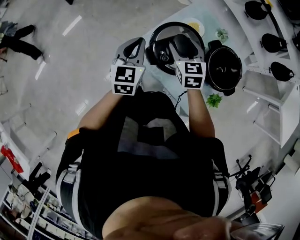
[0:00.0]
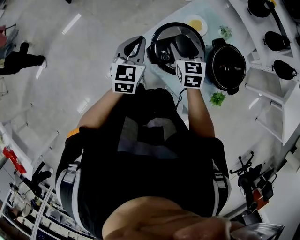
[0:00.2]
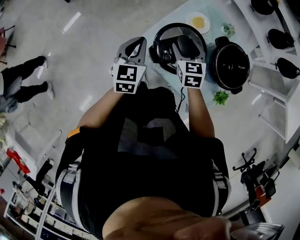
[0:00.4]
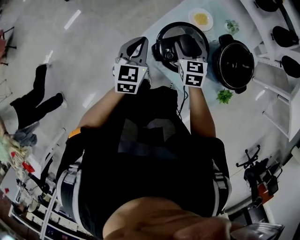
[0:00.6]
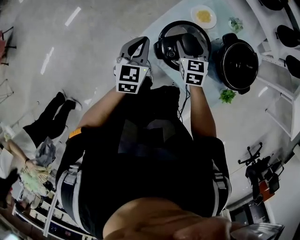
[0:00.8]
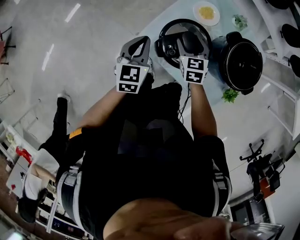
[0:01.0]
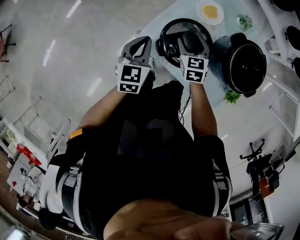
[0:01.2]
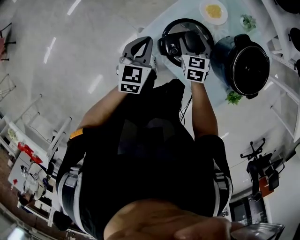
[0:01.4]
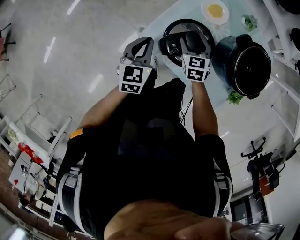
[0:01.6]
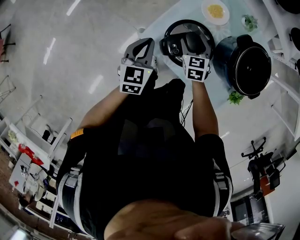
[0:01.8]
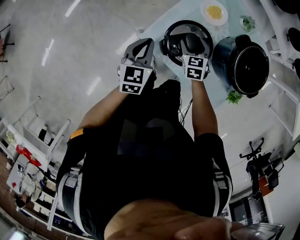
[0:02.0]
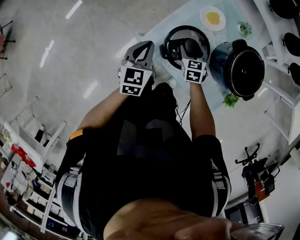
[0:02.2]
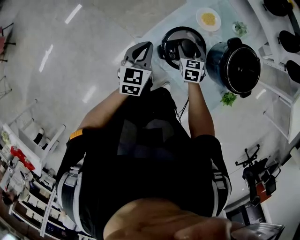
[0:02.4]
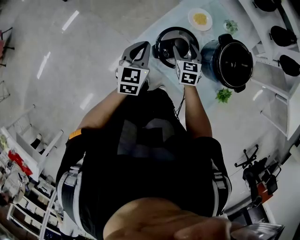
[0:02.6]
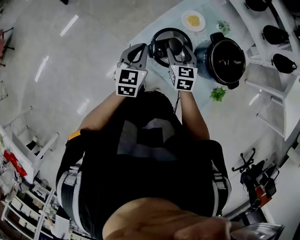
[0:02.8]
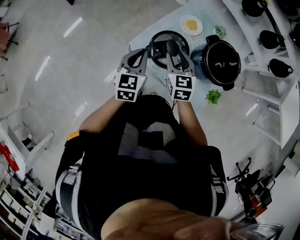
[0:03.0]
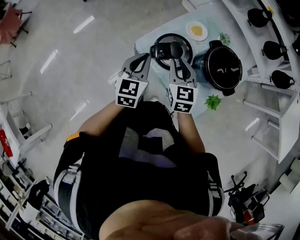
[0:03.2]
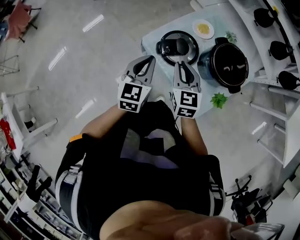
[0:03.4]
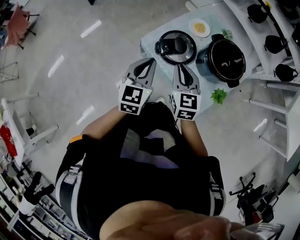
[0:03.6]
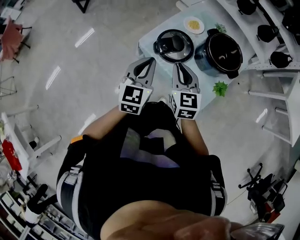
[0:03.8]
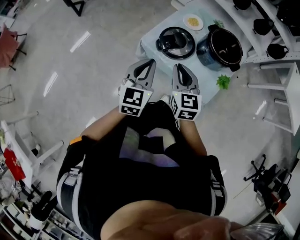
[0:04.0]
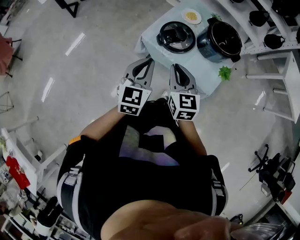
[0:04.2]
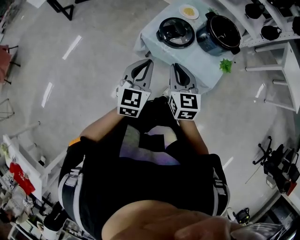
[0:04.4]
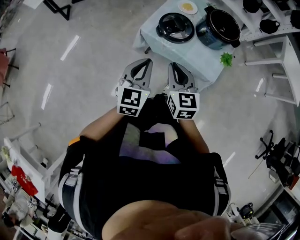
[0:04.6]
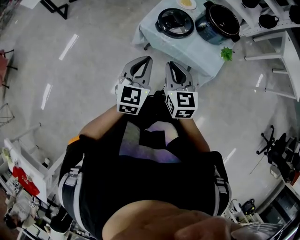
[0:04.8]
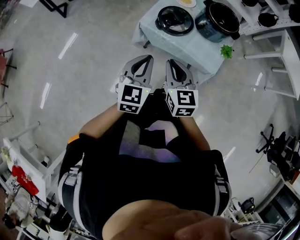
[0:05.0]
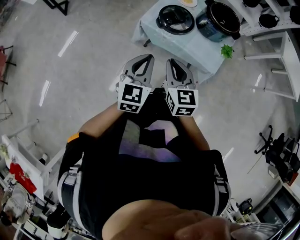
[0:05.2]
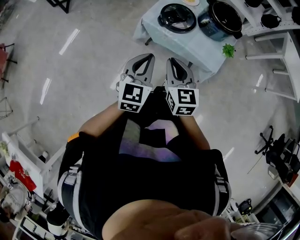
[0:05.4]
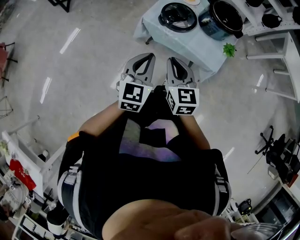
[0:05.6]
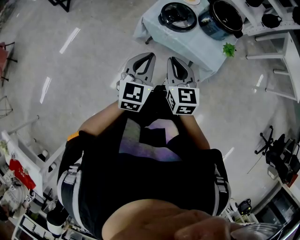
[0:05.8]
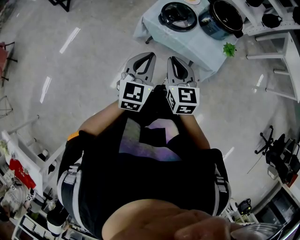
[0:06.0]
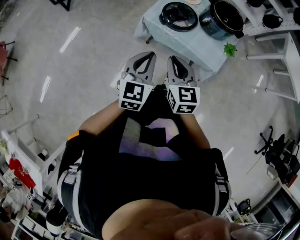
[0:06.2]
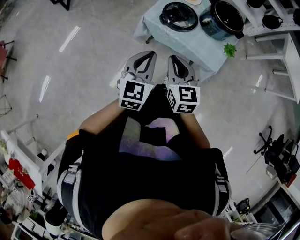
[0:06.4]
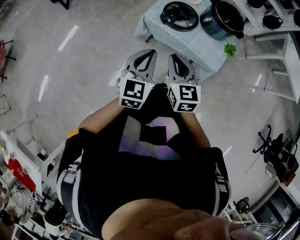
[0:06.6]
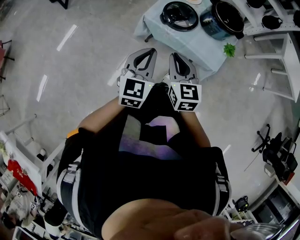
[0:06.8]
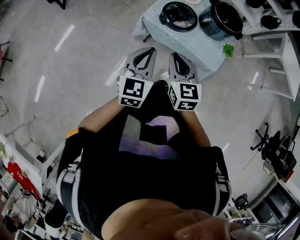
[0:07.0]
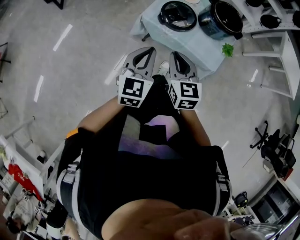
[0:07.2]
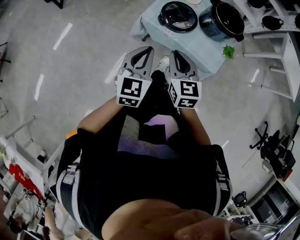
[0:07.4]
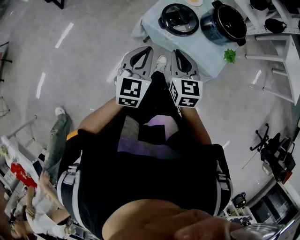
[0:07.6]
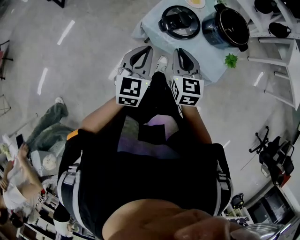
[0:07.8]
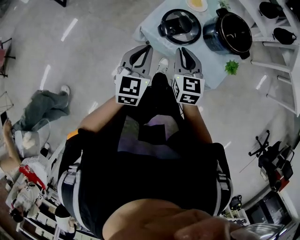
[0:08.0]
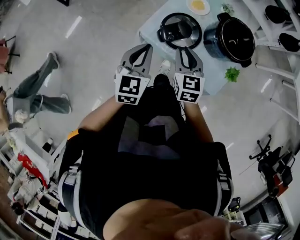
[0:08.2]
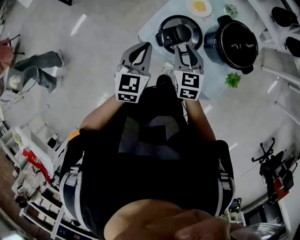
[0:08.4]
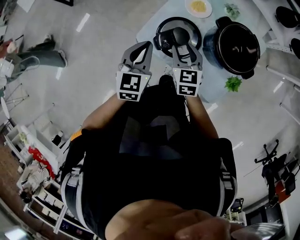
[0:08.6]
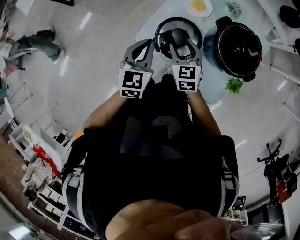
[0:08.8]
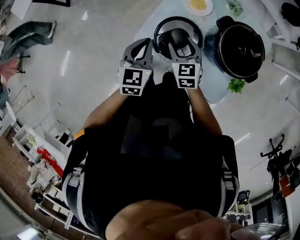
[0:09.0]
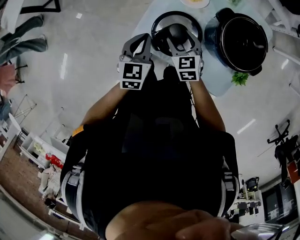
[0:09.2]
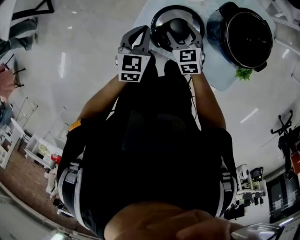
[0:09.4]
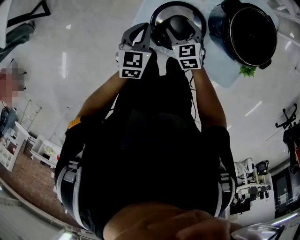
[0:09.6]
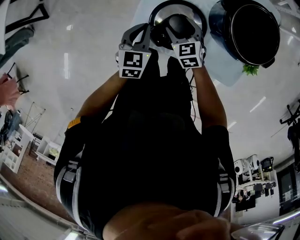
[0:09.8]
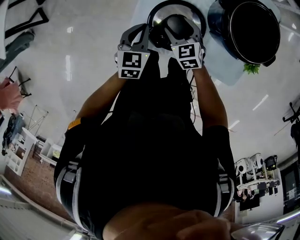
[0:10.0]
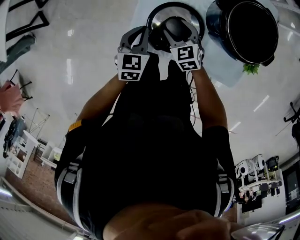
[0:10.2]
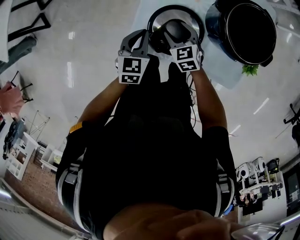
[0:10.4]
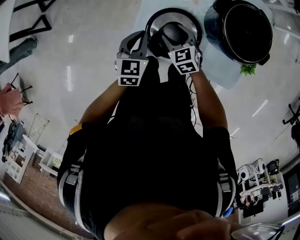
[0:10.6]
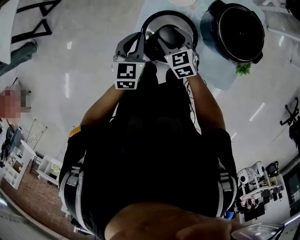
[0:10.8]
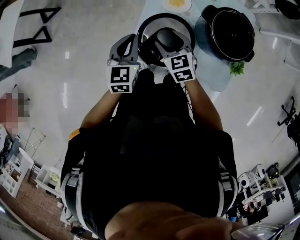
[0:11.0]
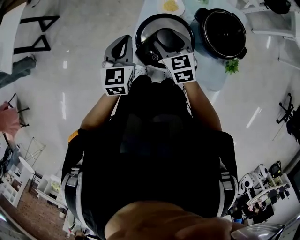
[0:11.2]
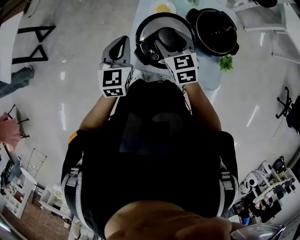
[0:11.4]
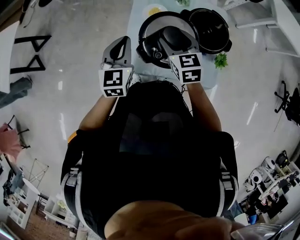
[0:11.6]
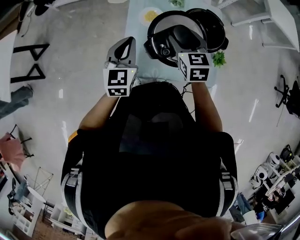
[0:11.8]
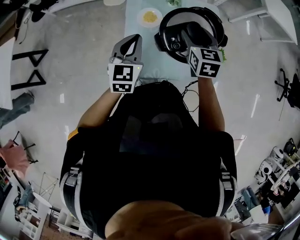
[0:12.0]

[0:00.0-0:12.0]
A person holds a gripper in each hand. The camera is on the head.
0:00.0 to 0:01.6: The two grippers go roughly 20 cm downward.
0:01.6 to 0:03.0: Both grippers travel together upward and backward, about 20 cm. The right gripper closes up.
0:03.0 to 0:04.4: The two grippers go approximately 25 cm backward. The right gripper closes its fingers.
0:04.4 to 0:06.0: Both grippers travel together backward, approximately 5 cm.
0:06.0 to 0:07.6: The two grippers go approximately 10 cm forward.
0:07.6 to 0:09.0: The left gripper moves forward, approximately 30 cm; the right gripper travels forward and downward by roughly 30 cm, and opens.
0:09.0 to 0:10.4: The left gripper is displaced downward and forward by some 15 cm. Meanwhile the right gripper heads downward, covering roughly 10 cm.
0:10.4 to 0:12.0: Both grippers travel together upward, roughly 25 cm. The left gripper changes its angle by about 30 degrees, while the right gripper rotates about 40 degrees.

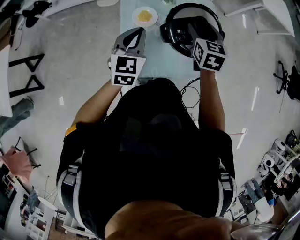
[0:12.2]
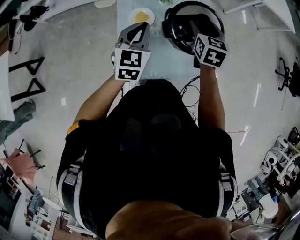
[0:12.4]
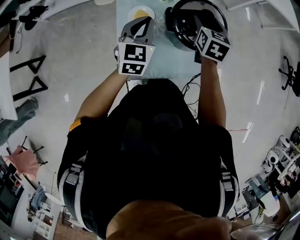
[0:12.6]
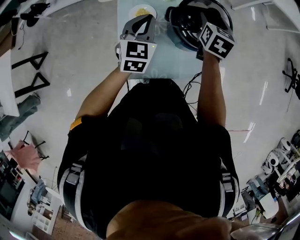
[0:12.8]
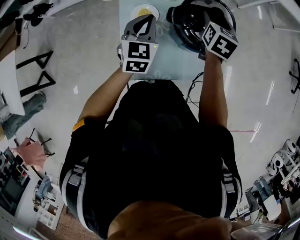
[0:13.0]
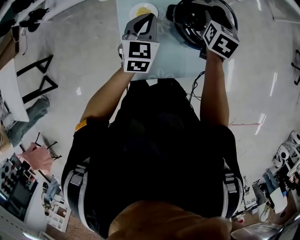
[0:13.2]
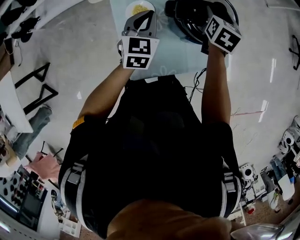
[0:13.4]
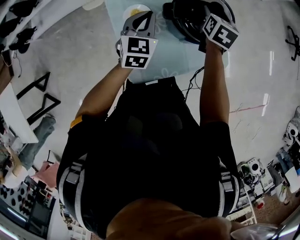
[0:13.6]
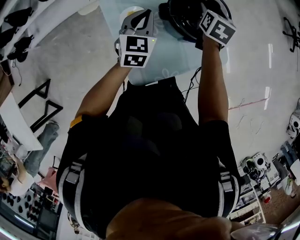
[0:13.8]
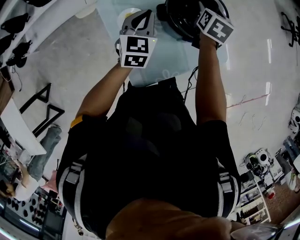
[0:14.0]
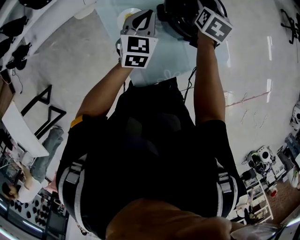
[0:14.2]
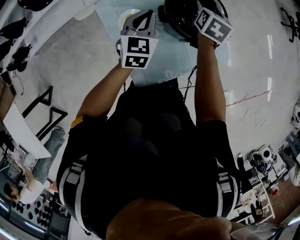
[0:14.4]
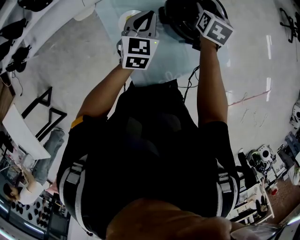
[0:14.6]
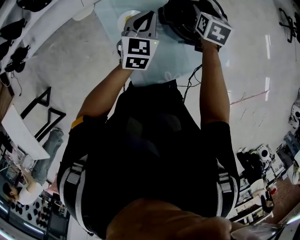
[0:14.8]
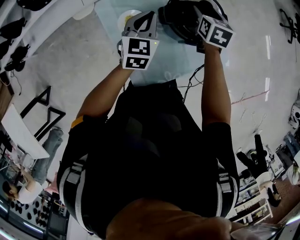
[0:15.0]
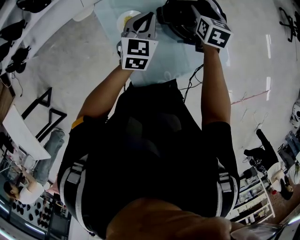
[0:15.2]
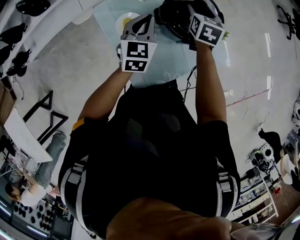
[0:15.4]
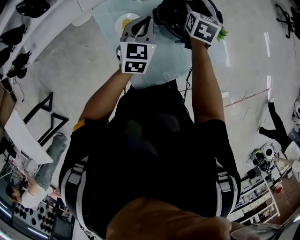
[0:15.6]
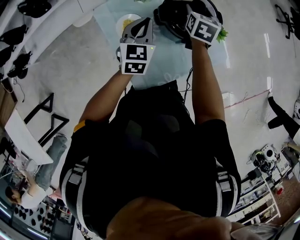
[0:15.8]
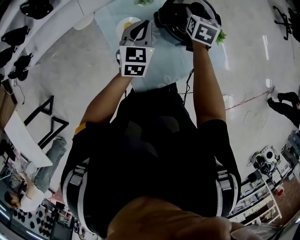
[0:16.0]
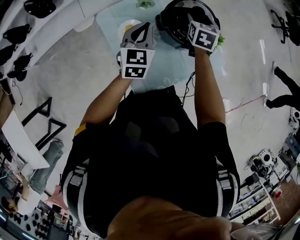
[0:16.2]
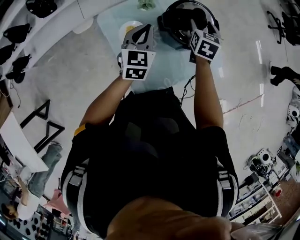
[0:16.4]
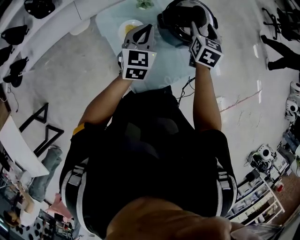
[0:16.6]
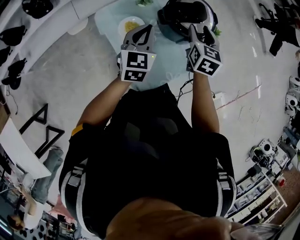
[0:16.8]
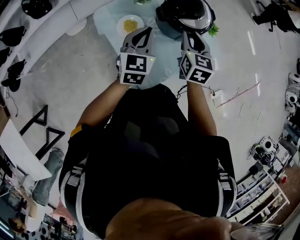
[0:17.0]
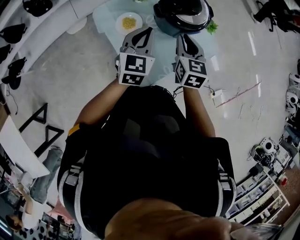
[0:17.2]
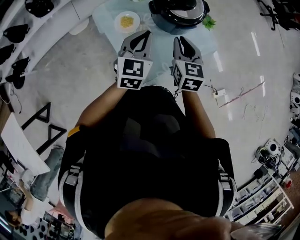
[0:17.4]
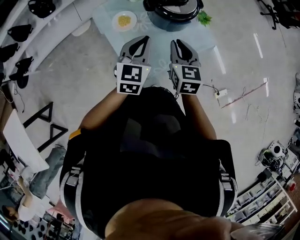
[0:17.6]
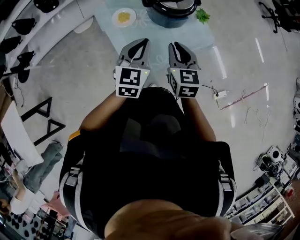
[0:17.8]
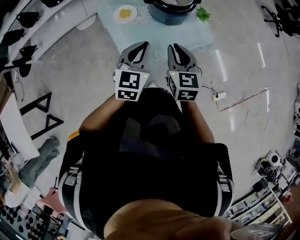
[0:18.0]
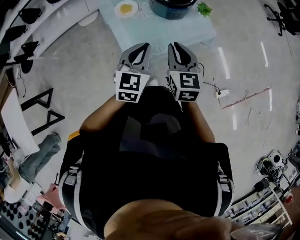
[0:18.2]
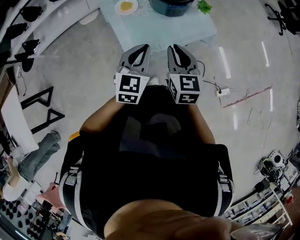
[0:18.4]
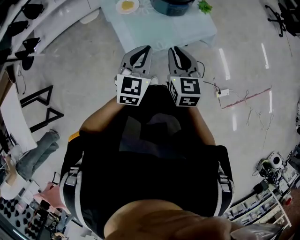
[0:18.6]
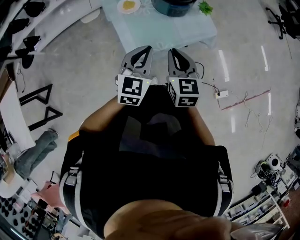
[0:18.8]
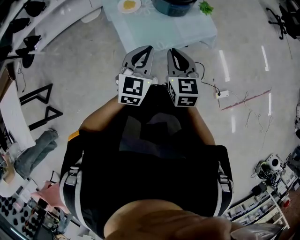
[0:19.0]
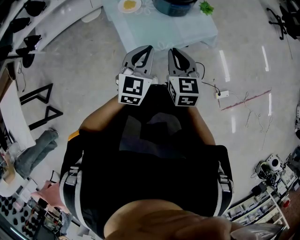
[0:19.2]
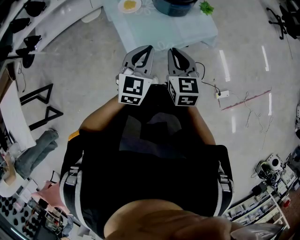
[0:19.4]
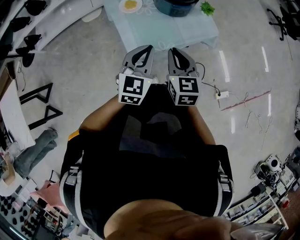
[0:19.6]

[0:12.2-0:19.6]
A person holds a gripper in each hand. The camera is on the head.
0:12.2 to 0:13.6: The left gripper is displaced forward and downward by some 15 cm; the right gripper moves forward, to the right and downward, about 15 cm, and changes its angle by approximately 30 degrees.
0:13.6 to 0:15.2: The grippers stay close to where they were, moving slightly.
0:15.2 to 0:16.6: The right gripper is displaced backward and upward by some 10 cm, while the left gripper is displaced backward by about 5 cm.
0:16.6 to 0:18.2: The left gripper travels backward and to the right by about 30 cm, while the right gripper heads backward, covering about 35 cm, rotates about 20 degrees, and closes up.
0:18.2 to 0:19.6: The right gripper shifts by some 5 cm.

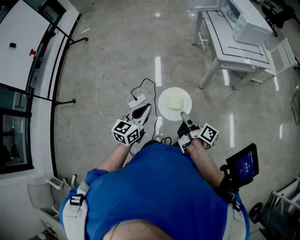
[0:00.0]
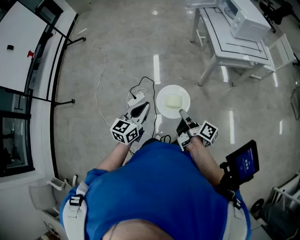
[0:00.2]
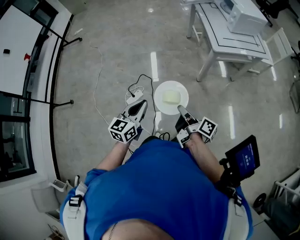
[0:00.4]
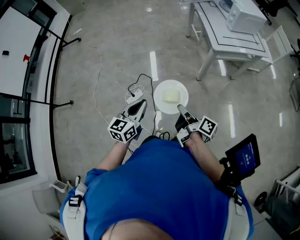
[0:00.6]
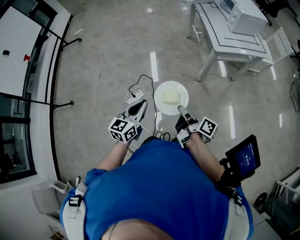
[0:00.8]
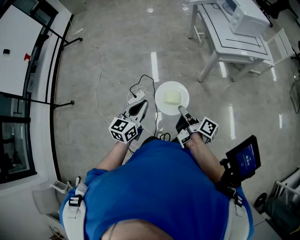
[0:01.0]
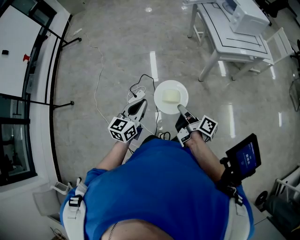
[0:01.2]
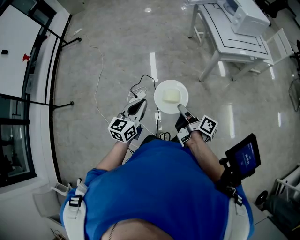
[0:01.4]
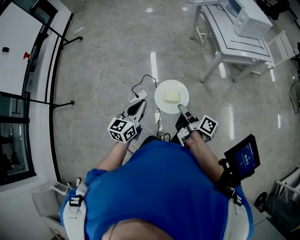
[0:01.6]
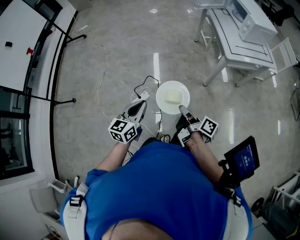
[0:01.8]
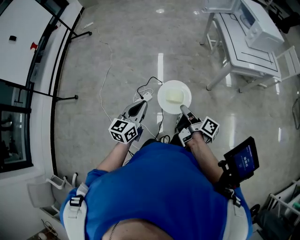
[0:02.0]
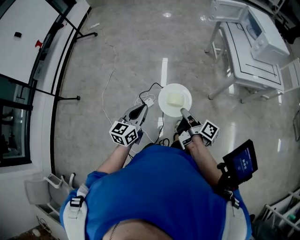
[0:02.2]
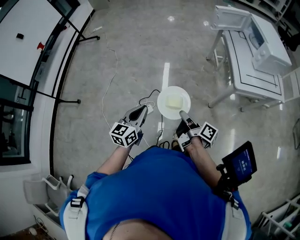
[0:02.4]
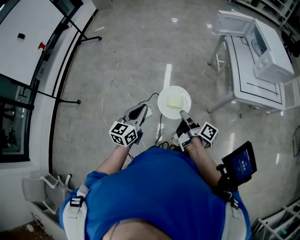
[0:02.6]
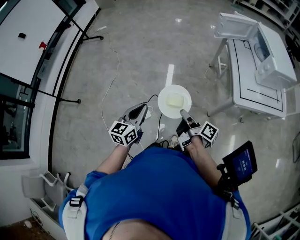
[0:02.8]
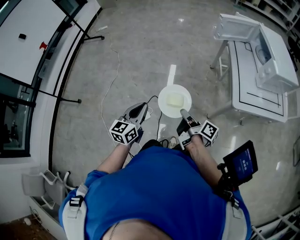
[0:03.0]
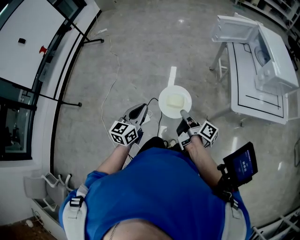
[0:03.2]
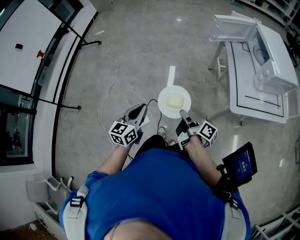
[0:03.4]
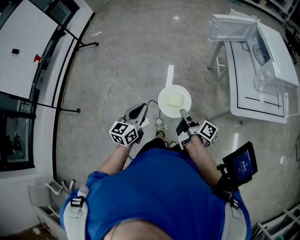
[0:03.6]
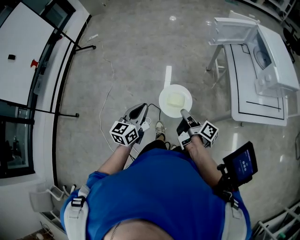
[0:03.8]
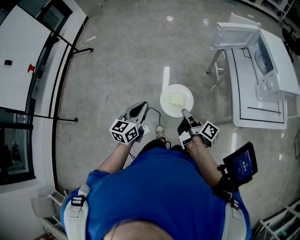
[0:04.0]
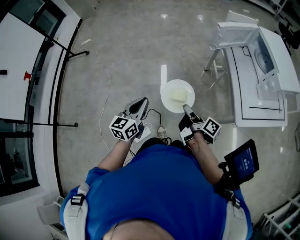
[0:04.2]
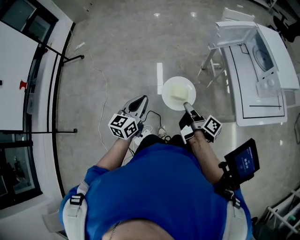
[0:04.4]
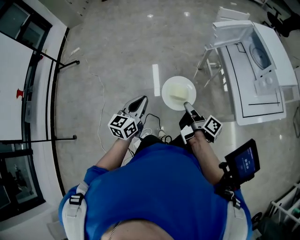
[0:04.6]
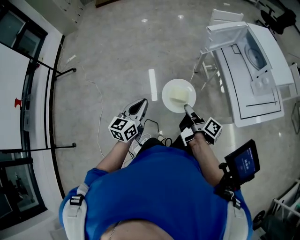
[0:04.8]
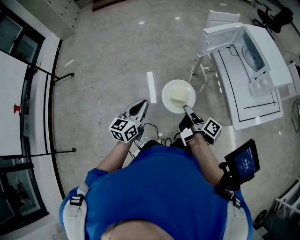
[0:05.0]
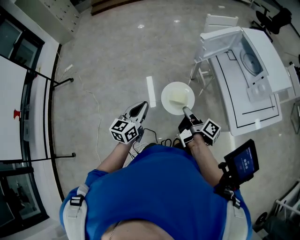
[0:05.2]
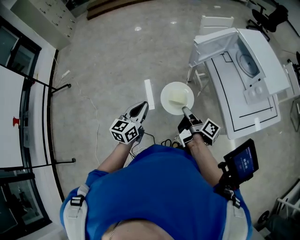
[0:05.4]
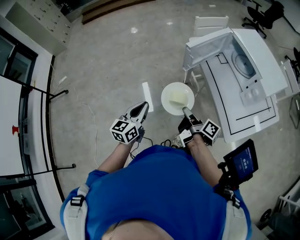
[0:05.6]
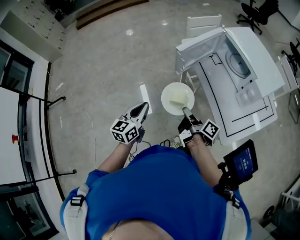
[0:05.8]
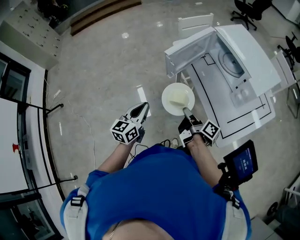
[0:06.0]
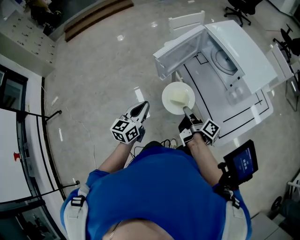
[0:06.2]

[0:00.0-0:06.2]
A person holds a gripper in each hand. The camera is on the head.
0:00.0 to 0:01.6: The two grippers go some 10 cm to the left.
0:01.6 to 0:03.2: Both grippers travel together forward, roughly 25 cm.
0:03.2 to 0:04.6: Both grippers move forward, roughly 25 cm.
0:04.6 to 0:06.2: The grippers both shift forward and to the right by roughly 30 cm.
